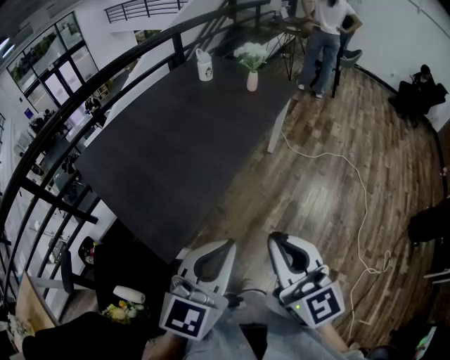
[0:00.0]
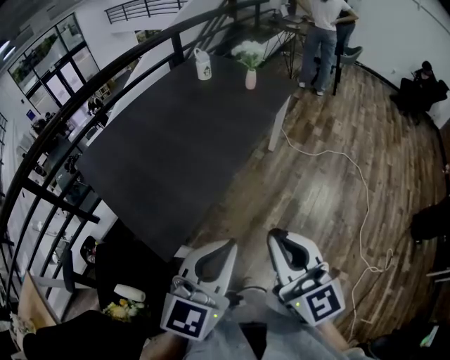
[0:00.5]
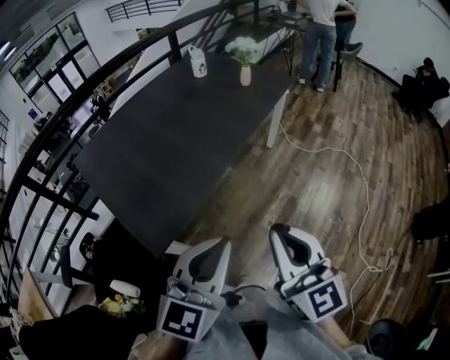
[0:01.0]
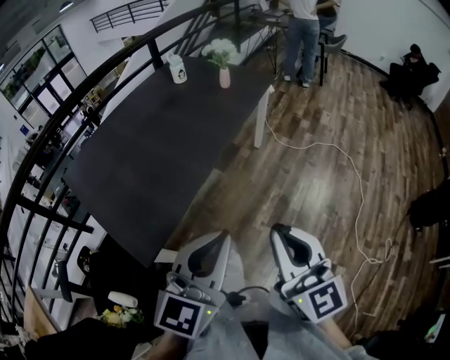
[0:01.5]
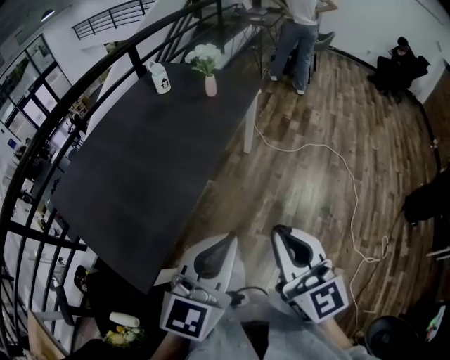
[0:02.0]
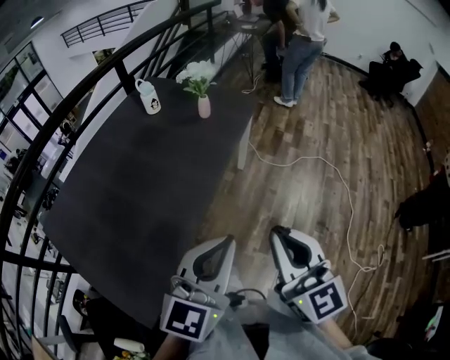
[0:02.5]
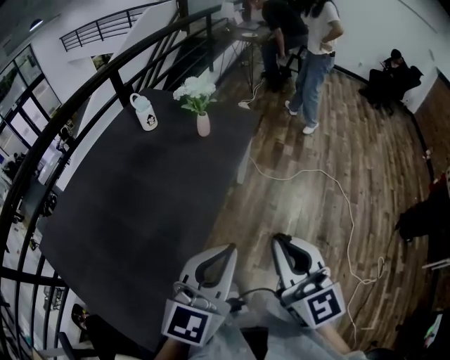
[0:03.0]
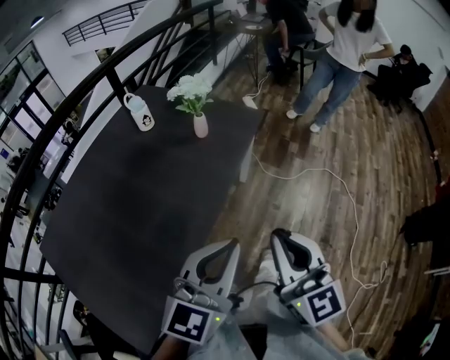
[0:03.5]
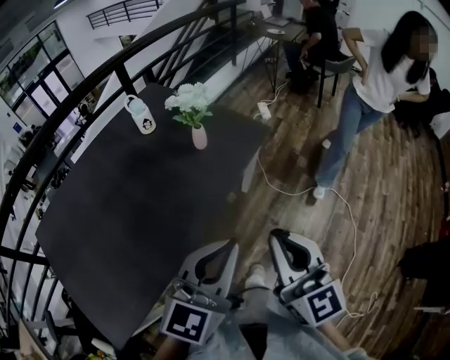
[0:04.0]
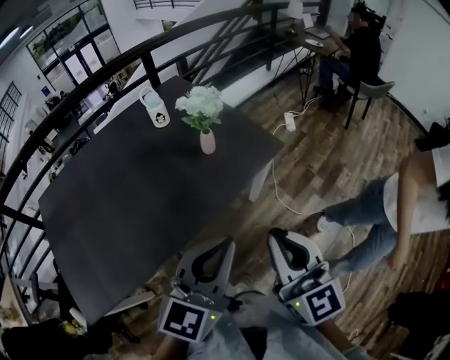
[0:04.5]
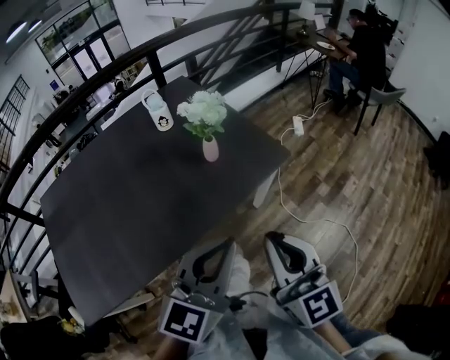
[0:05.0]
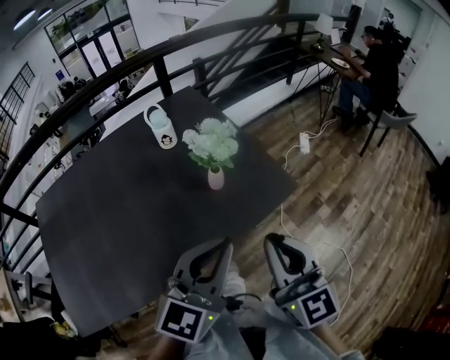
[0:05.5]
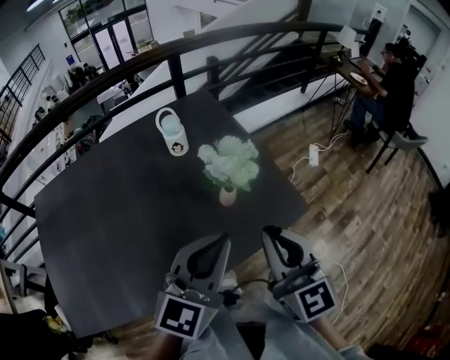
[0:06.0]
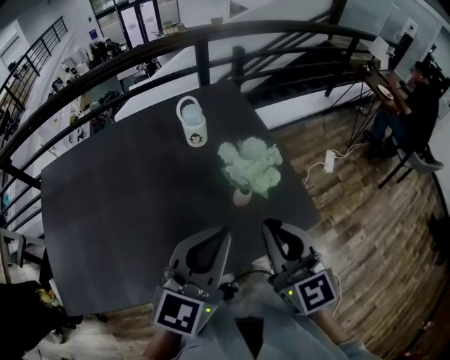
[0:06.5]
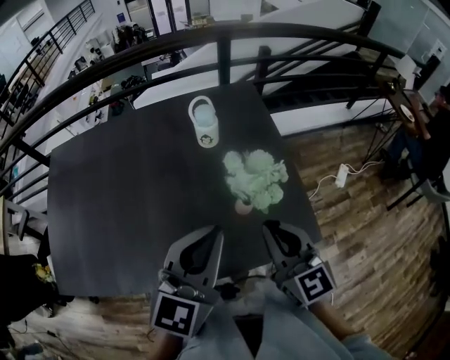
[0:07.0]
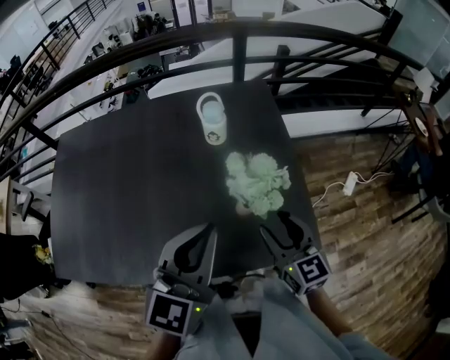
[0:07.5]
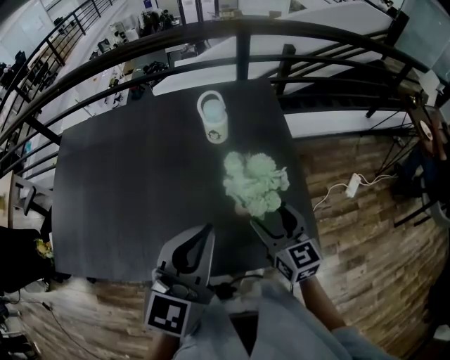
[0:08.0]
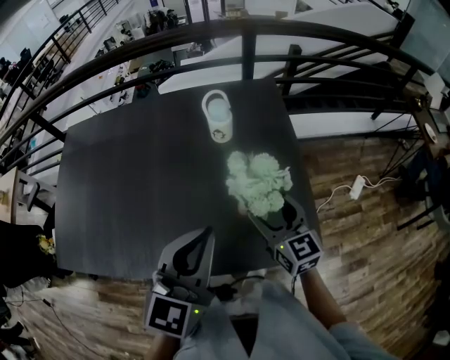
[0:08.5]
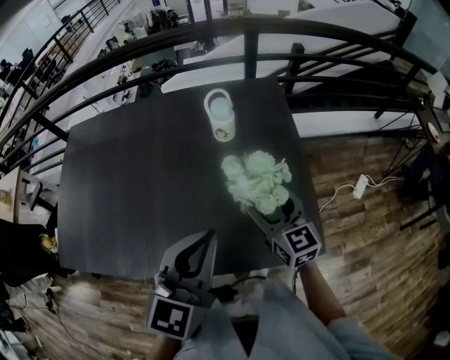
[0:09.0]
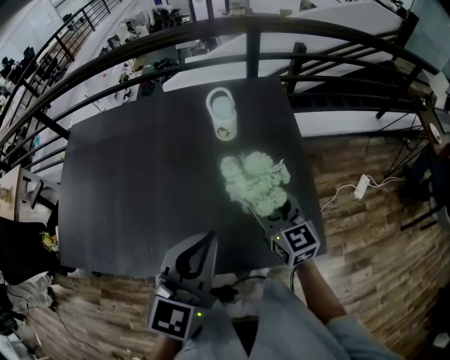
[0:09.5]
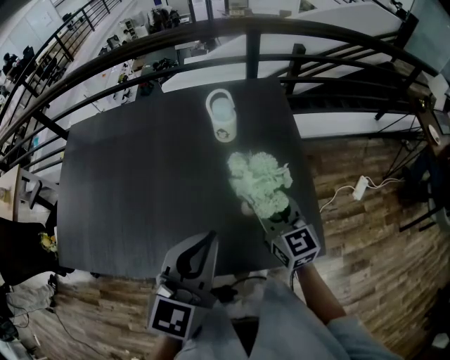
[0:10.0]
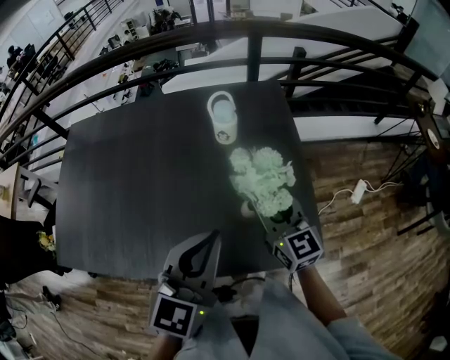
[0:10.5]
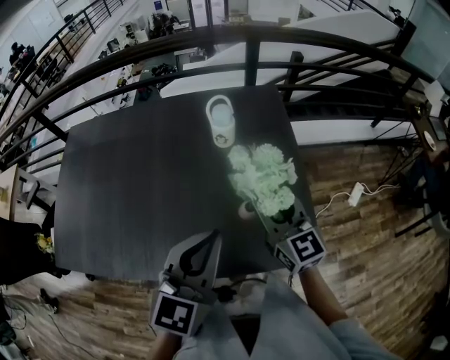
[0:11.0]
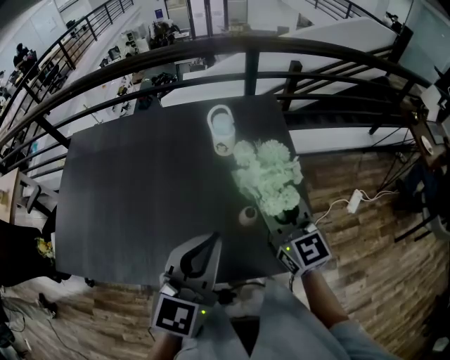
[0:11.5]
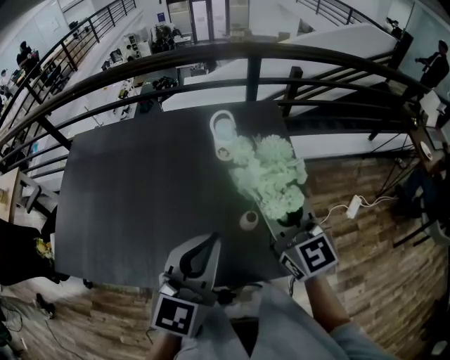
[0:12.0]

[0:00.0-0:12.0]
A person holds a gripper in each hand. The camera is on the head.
0:00.0 to 0:02.0: The two grippers go approximately 15 cm to the right and forward.
0:02.0 to 0:04.0: Both grippers move forward, about 35 cm.
0:04.0 to 0:06.0: The right gripper shifts by about 30 cm, and turns by about 30 degrees; the left gripper shifts by roughly 30 cm, and swivels approximately 30 degrees.
0:06.0 to 0:08.0: The right gripper is displaced downward by roughly 15 cm, turns by approximately 30 degrees, and opens. The left gripper ends up about 5 cm from where it was, and turns by about 30 degrees.
0:08.0 to 0:10.0: The right gripper shifts by some 5 cm, and closes its fingers.
0:10.0 to 0:12.0: The right gripper travels upward by some 15 cm.

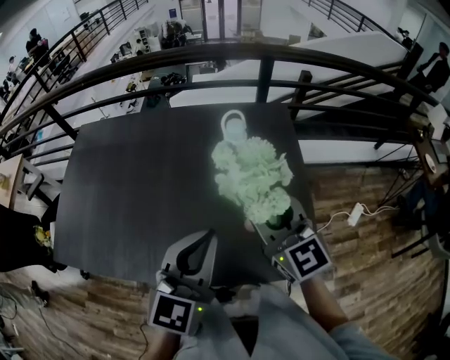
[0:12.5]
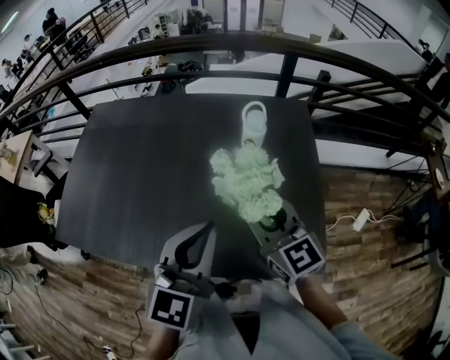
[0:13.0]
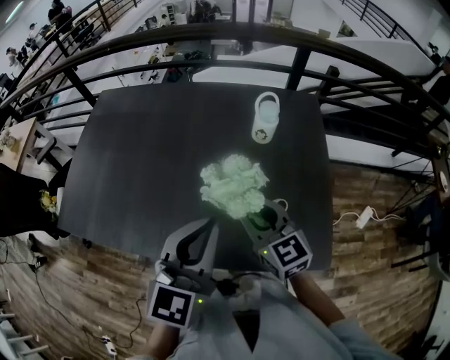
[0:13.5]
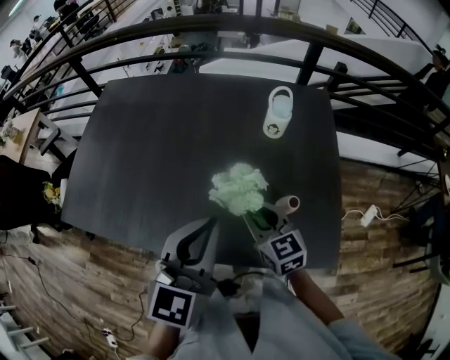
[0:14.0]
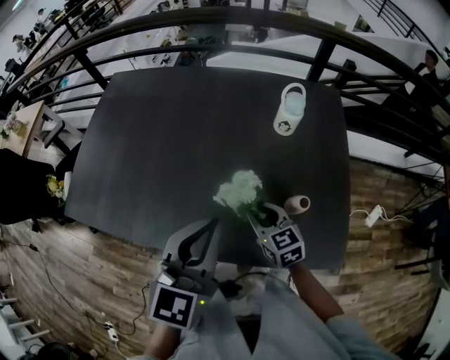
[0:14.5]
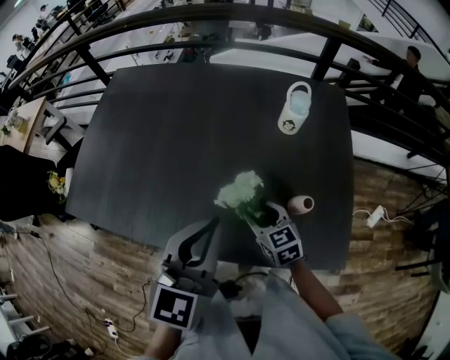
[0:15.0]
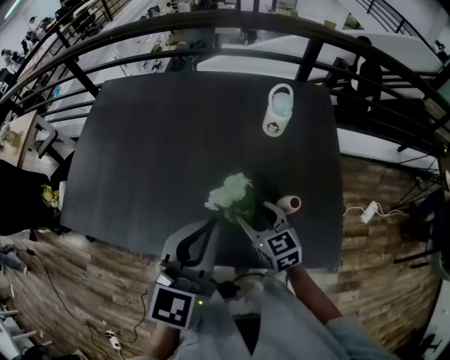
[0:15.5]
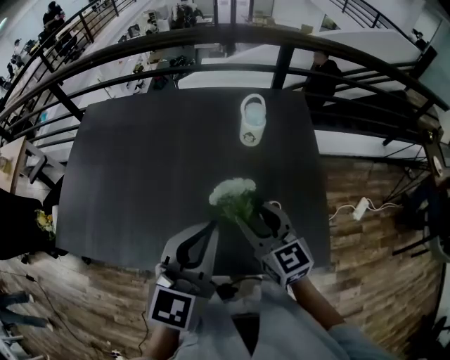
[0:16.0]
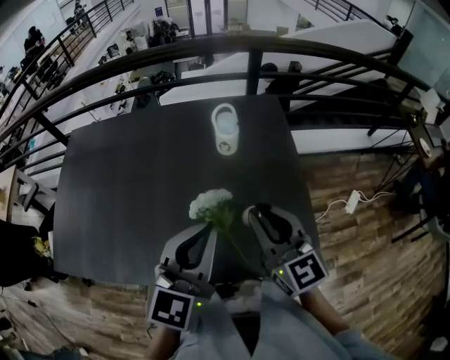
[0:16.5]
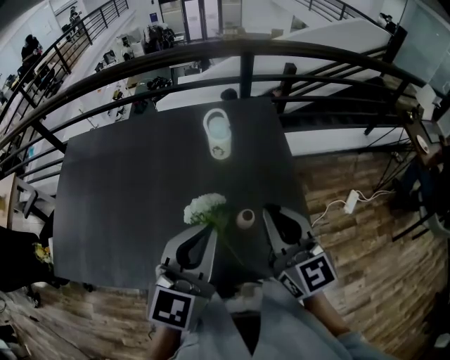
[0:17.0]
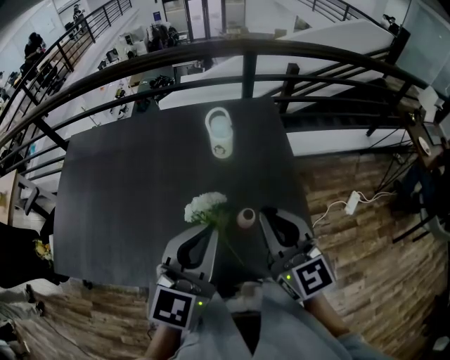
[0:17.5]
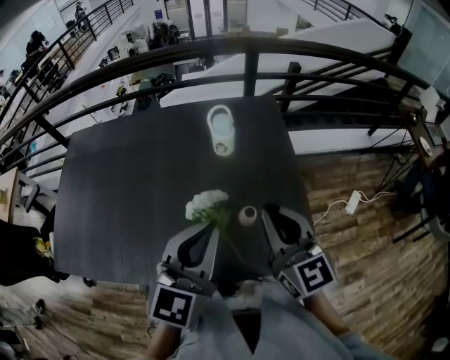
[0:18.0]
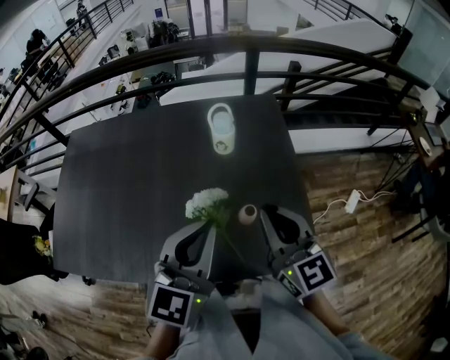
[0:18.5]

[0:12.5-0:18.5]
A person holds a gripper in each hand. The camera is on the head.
0:12.5 to 0:14.5: The right gripper shifts approximately 25 cm downward and to the left, and turns by some 30 degrees, while the left gripper is displaced to the left by approximately 10 cm.
0:14.5 to 0:16.5: The left gripper moves to the right, about 10 cm; the right gripper is displaced upward and to the right by some 25 cm, rotates roughly 30 degrees, and opens, then closes again.
0:16.5 to 0:18.5: The grippers move only a little.

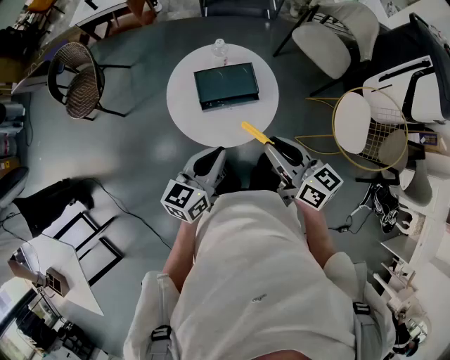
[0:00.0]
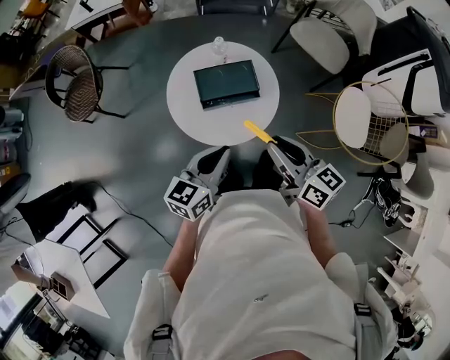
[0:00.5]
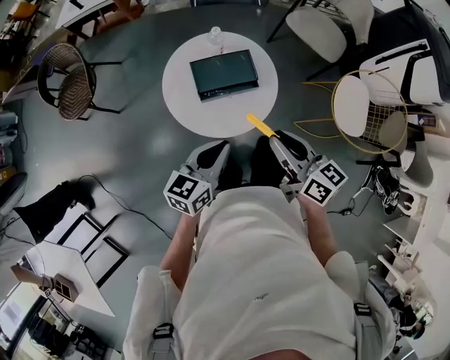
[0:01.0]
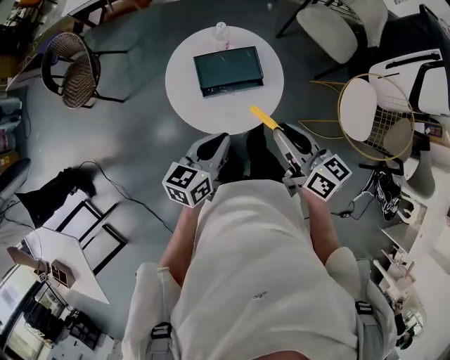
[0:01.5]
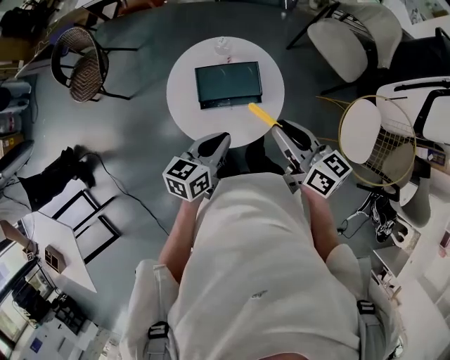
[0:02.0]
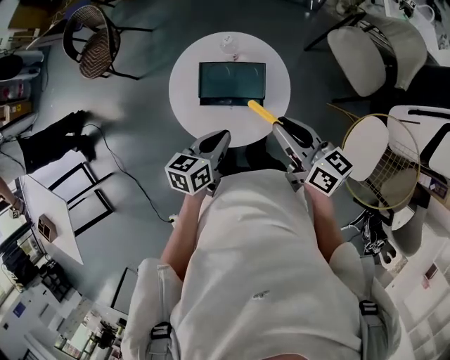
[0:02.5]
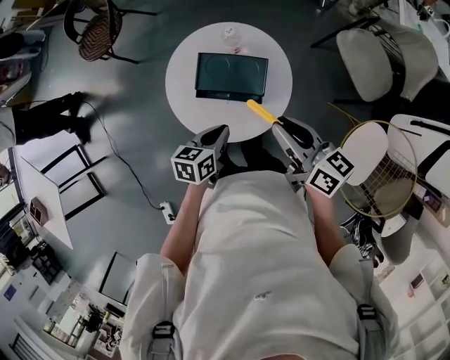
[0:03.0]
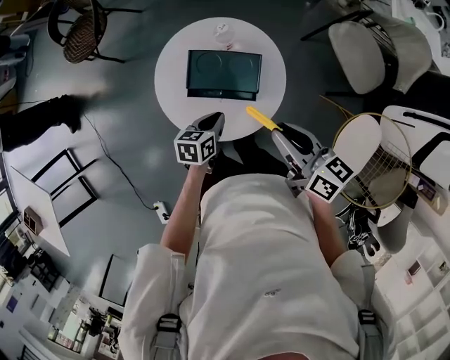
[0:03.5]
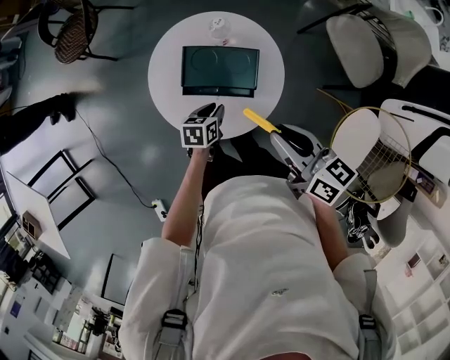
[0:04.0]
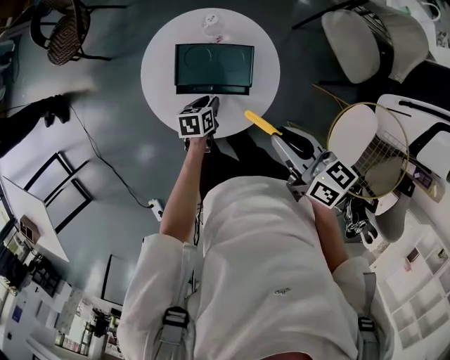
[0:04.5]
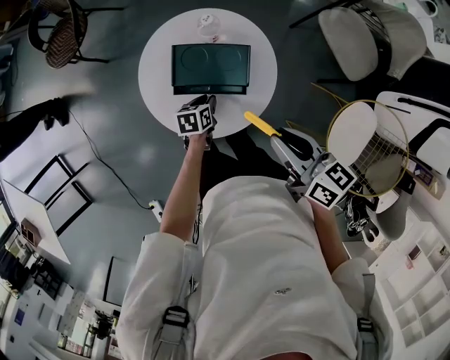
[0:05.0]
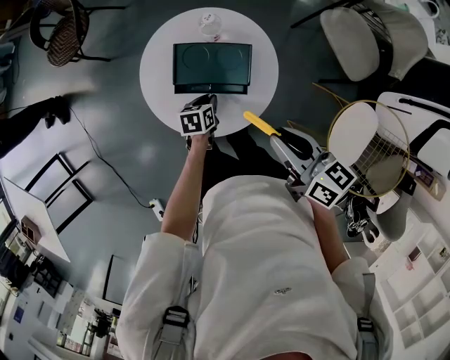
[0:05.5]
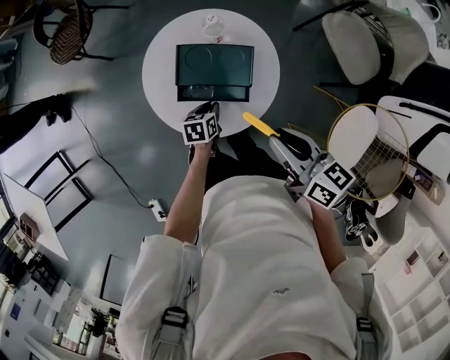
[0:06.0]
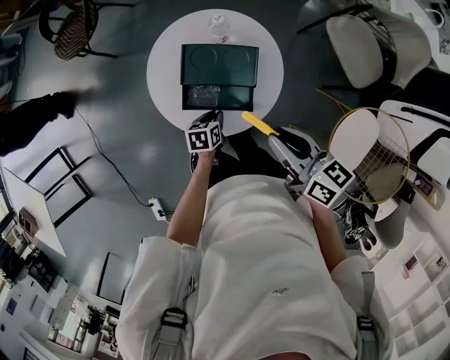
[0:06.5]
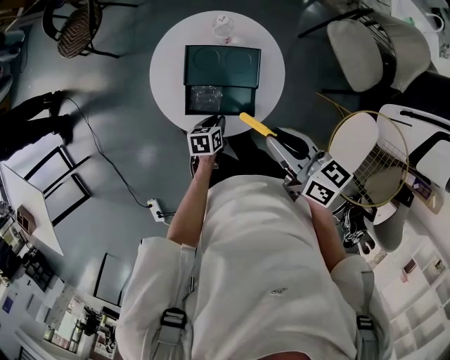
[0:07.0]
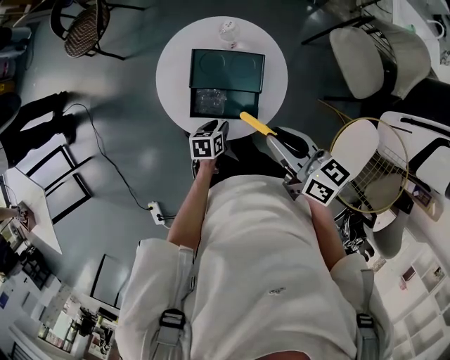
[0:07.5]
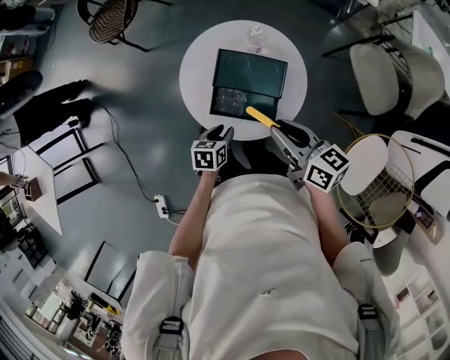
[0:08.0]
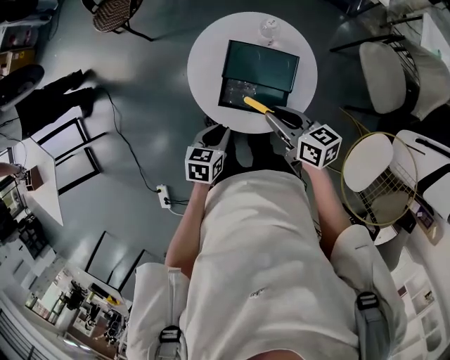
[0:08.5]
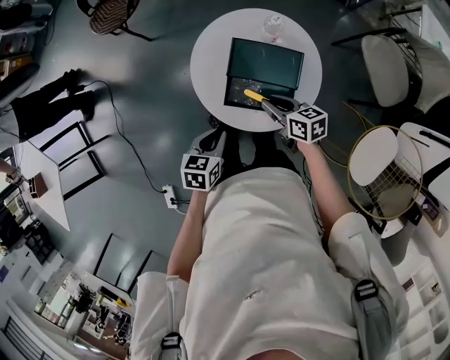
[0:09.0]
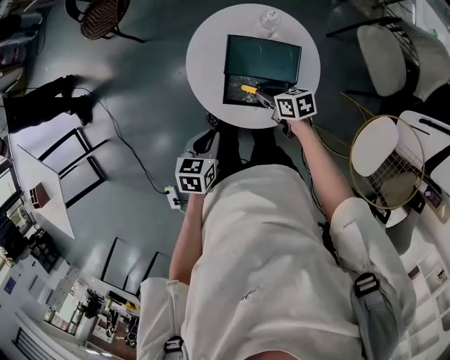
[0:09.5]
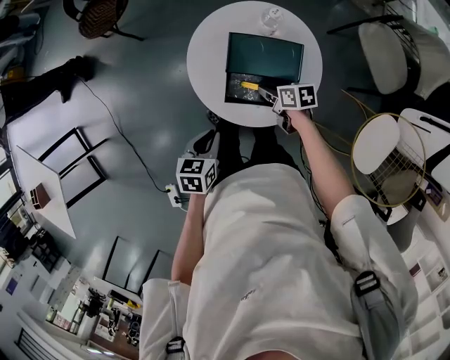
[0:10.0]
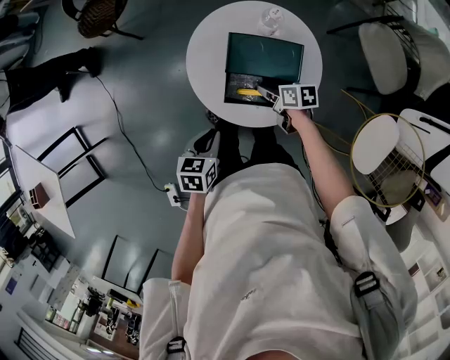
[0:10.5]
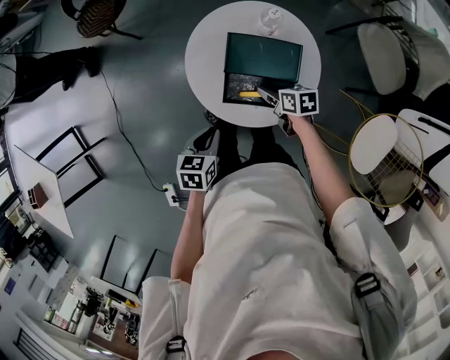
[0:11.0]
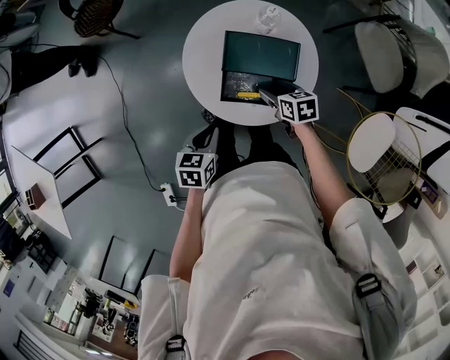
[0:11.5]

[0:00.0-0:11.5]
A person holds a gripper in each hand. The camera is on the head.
0:00.0 to 0:02.0: Both grippers move forward, about 10 cm.
0:02.0 to 0:04.0: The left gripper heads downward, covering roughly 25 cm, and turns by about 30 degrees. Meanwhile the right gripper heads downward, covering about 5 cm.
0:04.0 to 0:06.0: The grippers make only small movements.
0:06.0 to 0:07.5: The left gripper goes roughly 5 cm backward.
0:07.5 to 0:09.5: The right gripper is displaced downward and to the left by some 25 cm, and rotates approximately 30 degrees. Meanwhile the left gripper shifts roughly 20 cm upward and to the left, and closes.
0:09.5 to 0:11.5: The right gripper opens.
